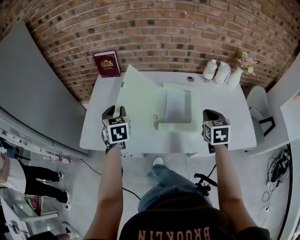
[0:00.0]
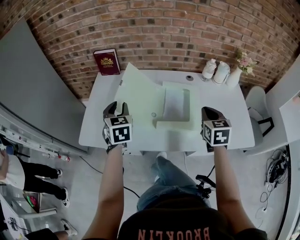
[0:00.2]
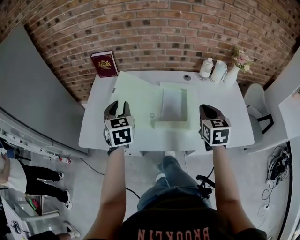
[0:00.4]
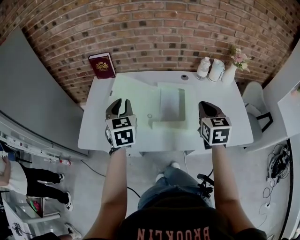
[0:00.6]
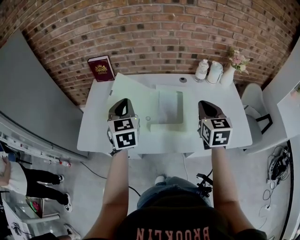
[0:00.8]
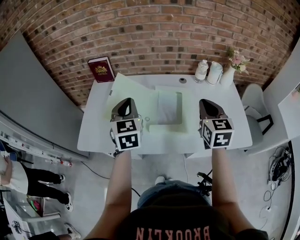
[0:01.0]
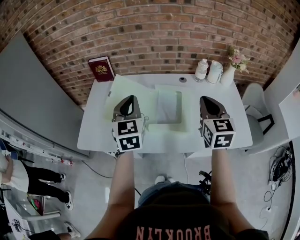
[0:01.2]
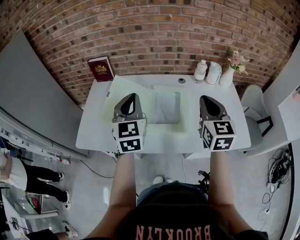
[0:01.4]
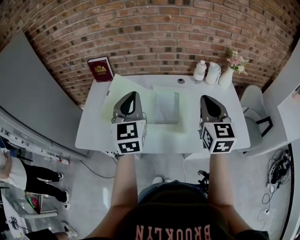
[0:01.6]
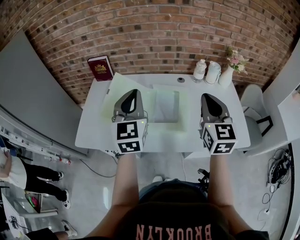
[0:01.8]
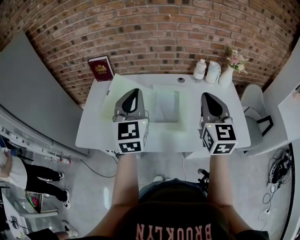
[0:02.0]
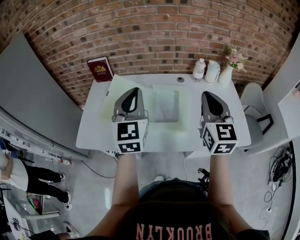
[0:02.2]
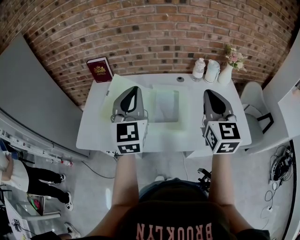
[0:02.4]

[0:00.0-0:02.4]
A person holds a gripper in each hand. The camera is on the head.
0:00.0 to 0:01.2: The left gripper shifts approximately 20 cm to the right and upward, changes its angle by approximately 20 degrees, and closes up. Meanwhile the right gripper travels upward by roughly 10 cm, and swivels about 20 degrees.
0:01.2 to 0:02.4: The grippers both shift upward by roughly 5 cm.

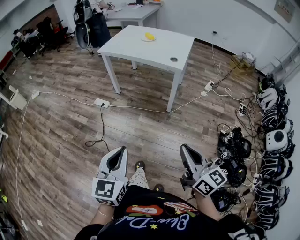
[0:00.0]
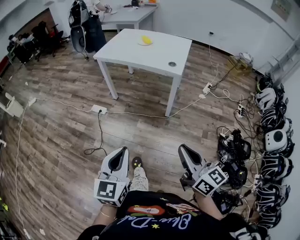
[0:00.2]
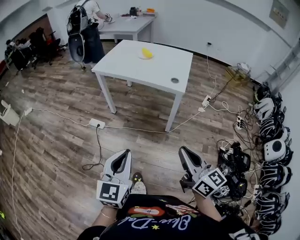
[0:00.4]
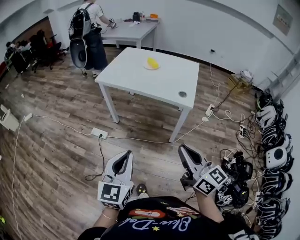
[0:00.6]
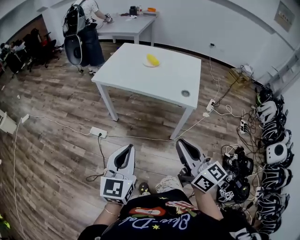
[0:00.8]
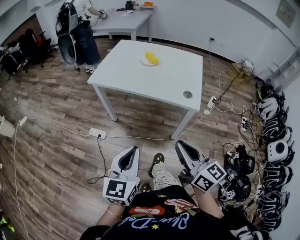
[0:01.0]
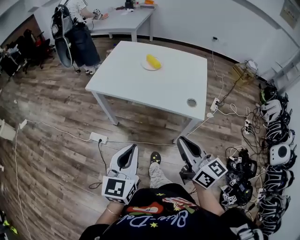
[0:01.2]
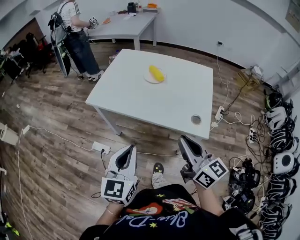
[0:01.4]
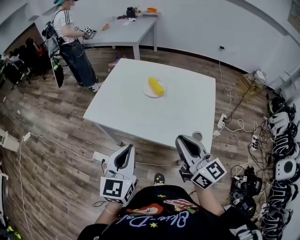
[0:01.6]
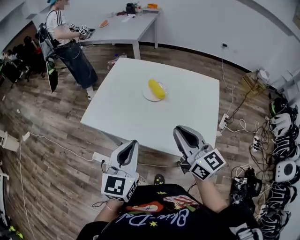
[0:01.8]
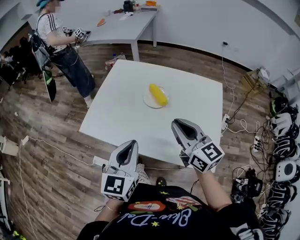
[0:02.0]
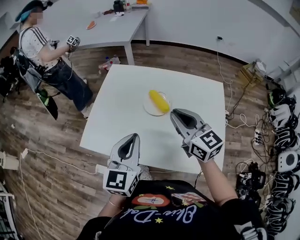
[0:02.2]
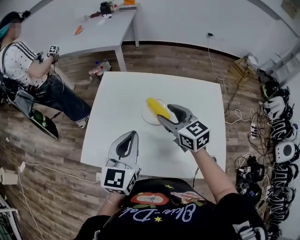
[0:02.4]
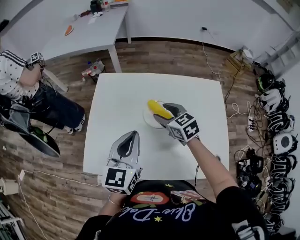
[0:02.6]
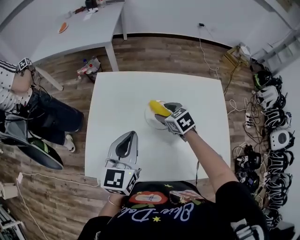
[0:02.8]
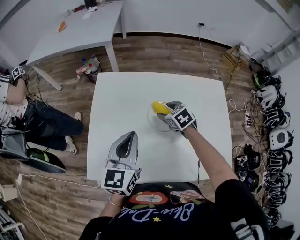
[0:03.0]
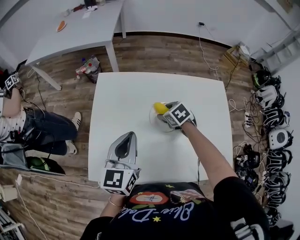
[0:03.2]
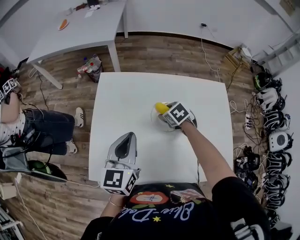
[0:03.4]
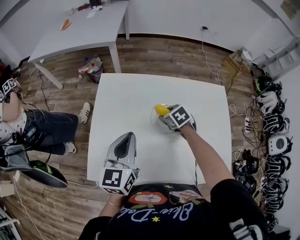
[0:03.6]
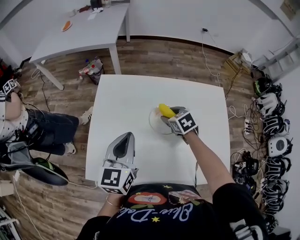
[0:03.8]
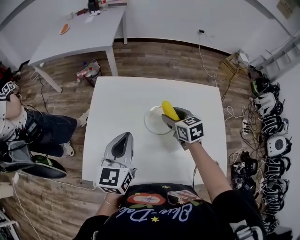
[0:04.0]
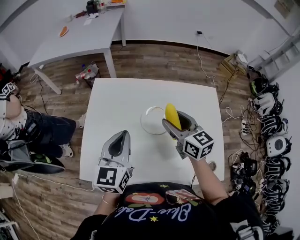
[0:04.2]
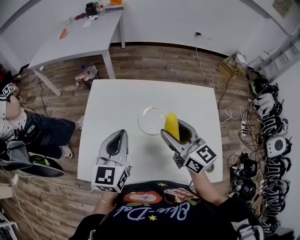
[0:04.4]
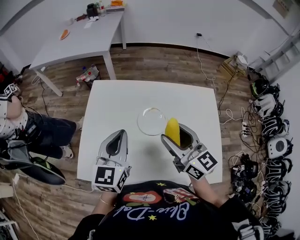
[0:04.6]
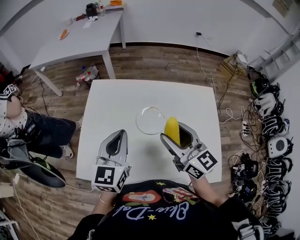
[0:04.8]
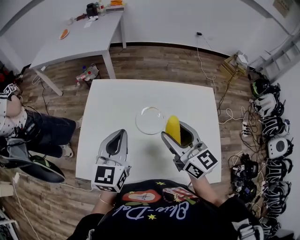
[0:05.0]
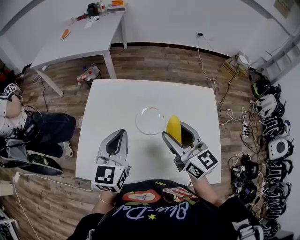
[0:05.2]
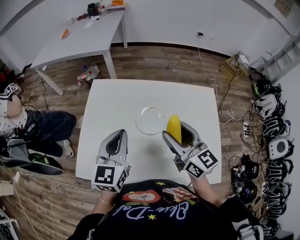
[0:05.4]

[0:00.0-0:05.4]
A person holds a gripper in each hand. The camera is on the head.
0:00.0 to 0:01.4: The pair of grippers is taken forward, some 60 cm.
0:01.4 to 0:02.8: Both grippers are carried forward, some 50 cm. The right gripper points its fingers some 50 degrees further downward, and opens its fingers.
0:02.8 to 0:04.0: The right gripper moves roughly 5 cm.
0:04.0 to 0:05.4: The right gripper is displaced upward and backward by approximately 20 cm, and tilts its fingers approximately 30 degrees upward.

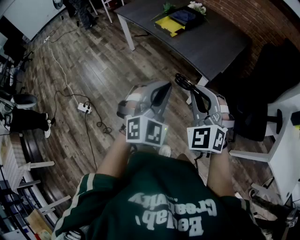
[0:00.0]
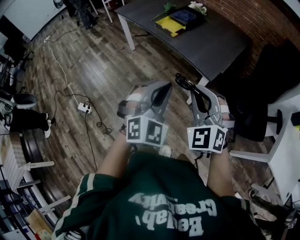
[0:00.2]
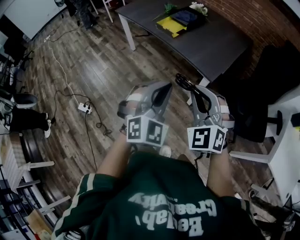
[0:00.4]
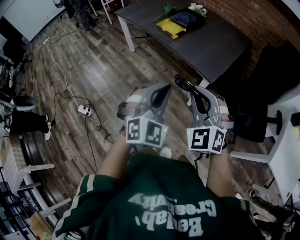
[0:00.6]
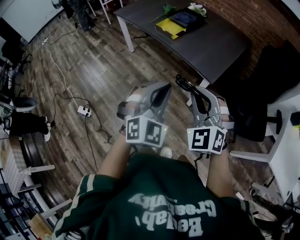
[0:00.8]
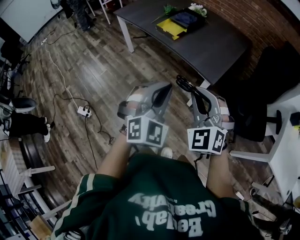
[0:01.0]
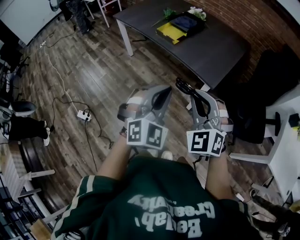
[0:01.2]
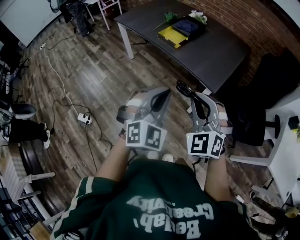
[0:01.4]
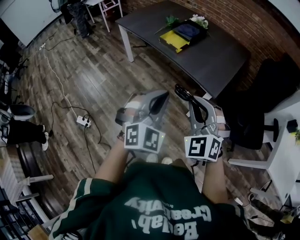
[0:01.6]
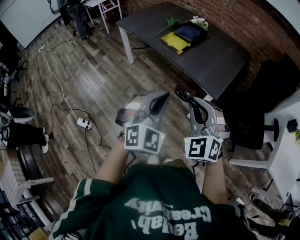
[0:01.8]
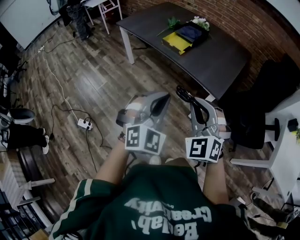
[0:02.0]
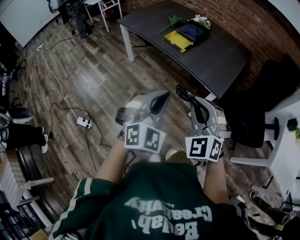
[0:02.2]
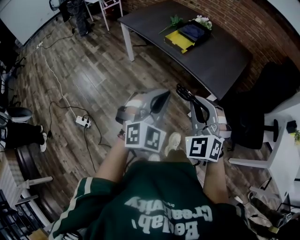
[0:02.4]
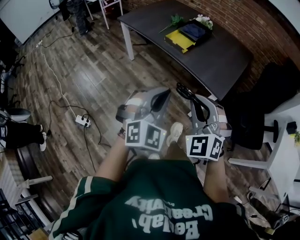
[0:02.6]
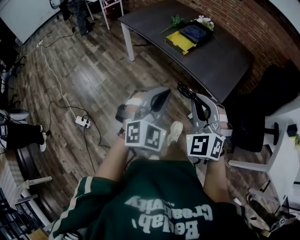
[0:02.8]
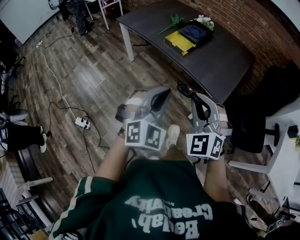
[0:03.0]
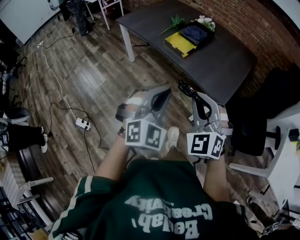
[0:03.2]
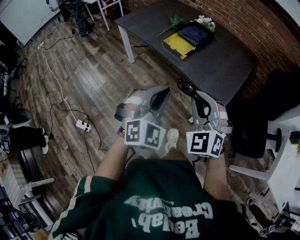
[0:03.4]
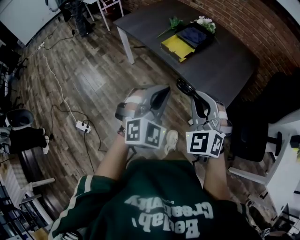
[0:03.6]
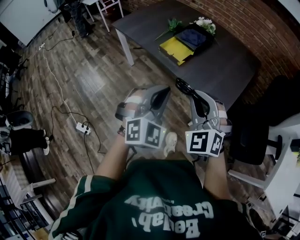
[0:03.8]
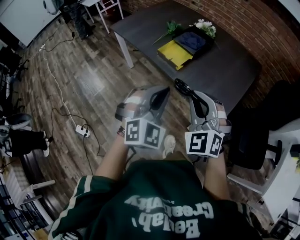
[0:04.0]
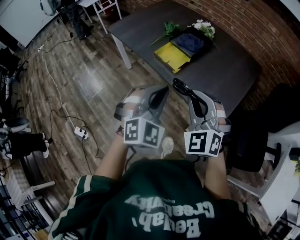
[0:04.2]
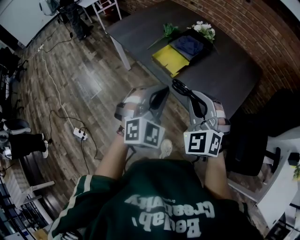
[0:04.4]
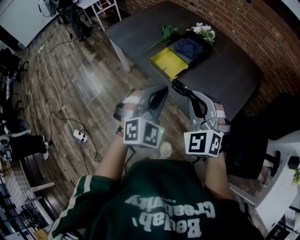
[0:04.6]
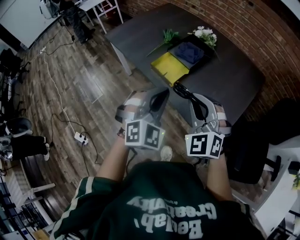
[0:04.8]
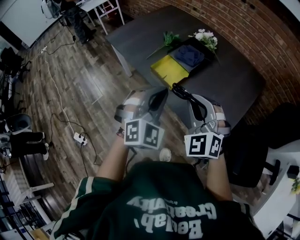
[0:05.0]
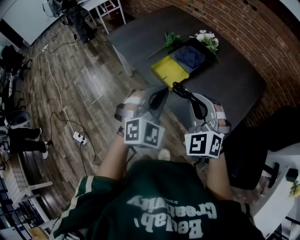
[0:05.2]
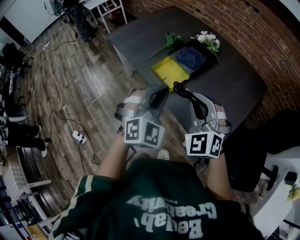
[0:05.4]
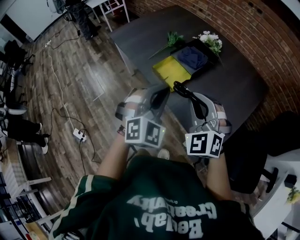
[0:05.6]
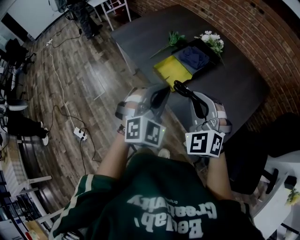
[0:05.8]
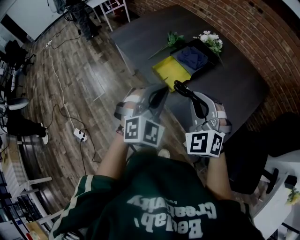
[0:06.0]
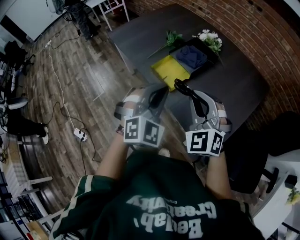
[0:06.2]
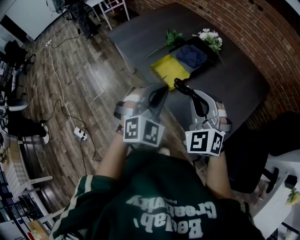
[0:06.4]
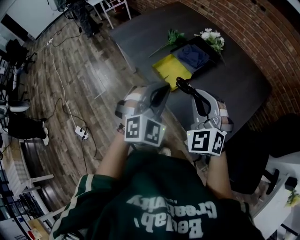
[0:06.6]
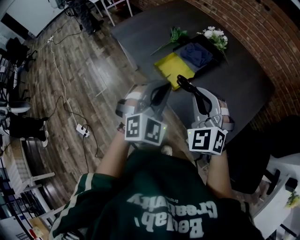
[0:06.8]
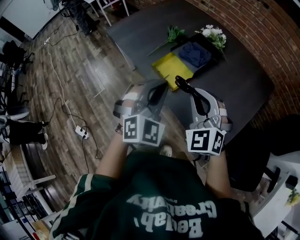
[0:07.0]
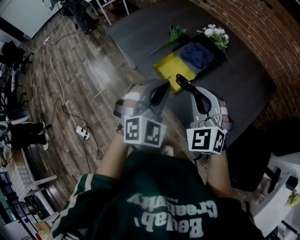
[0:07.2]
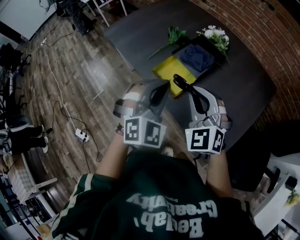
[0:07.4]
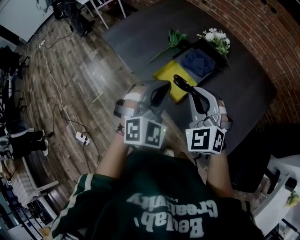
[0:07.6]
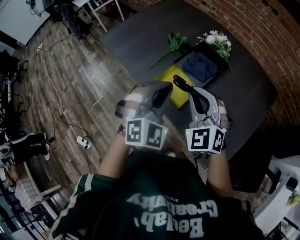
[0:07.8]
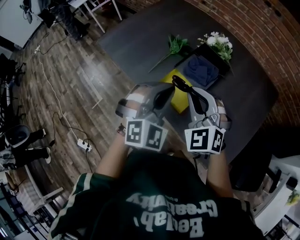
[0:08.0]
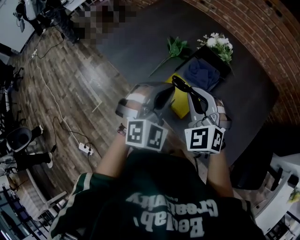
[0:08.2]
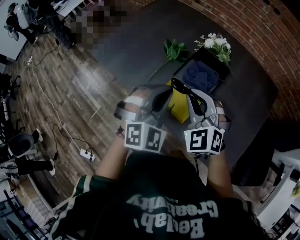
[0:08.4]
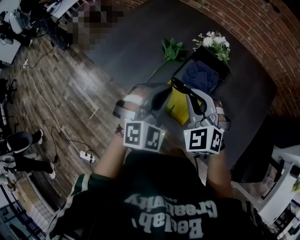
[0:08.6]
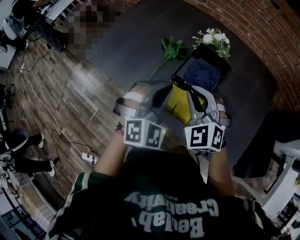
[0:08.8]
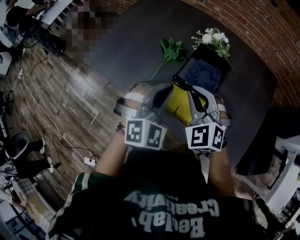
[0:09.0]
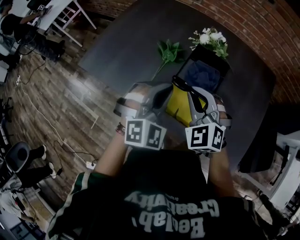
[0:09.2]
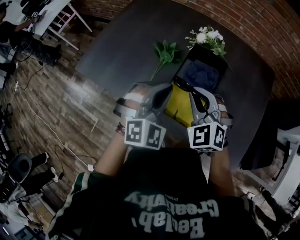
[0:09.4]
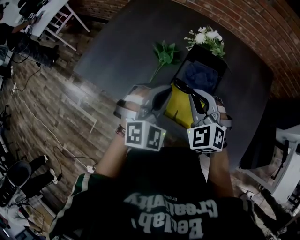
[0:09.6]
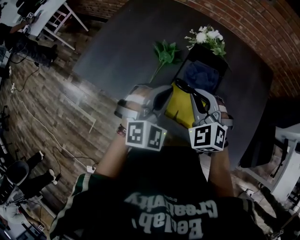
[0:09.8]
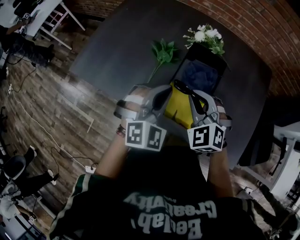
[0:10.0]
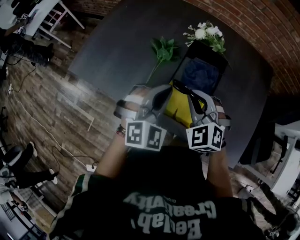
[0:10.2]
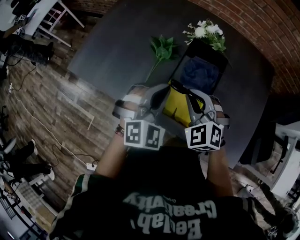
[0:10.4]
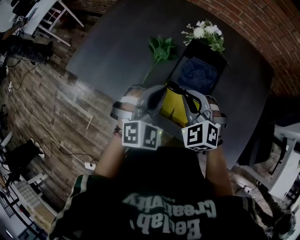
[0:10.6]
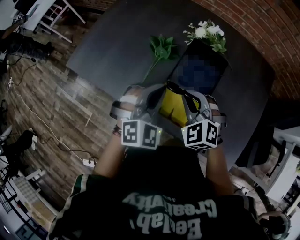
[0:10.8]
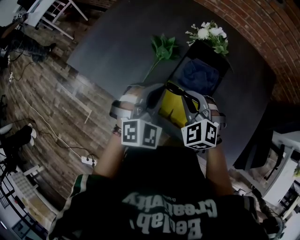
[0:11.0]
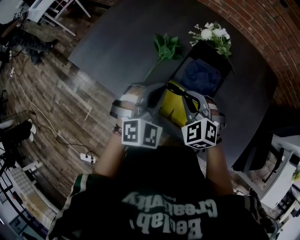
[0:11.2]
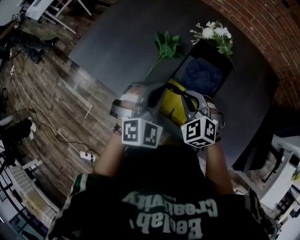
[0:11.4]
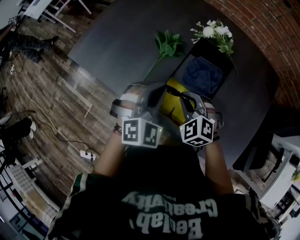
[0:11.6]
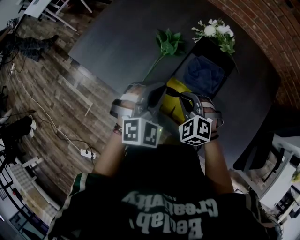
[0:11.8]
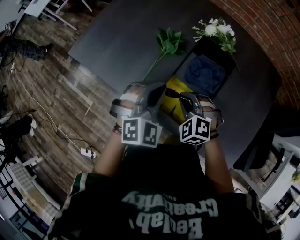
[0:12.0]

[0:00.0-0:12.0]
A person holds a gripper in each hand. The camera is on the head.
0:00.0 to 0:01.6: The left gripper shifts about 10 cm to the left and forward. The right gripper goes approximately 10 cm to the left.
0:01.6 to 0:03.0: Both grippers travel together forward and to the left, approximately 10 cm.
0:03.0 to 0:04.4: Both grippers travel together forward, roughly 25 cm.
0:04.4 to 0:06.0: The grippers both shift forward by some 10 cm.
0:06.0 to 0:07.6: The grippers both shift forward by roughly 15 cm.
0:07.6 to 0:09.0: Both grippers move forward and to the left, about 20 cm.
0:09.0 to 0:10.4: The right gripper is displaced downward by about 5 cm; the left gripper changes place by roughly 5 cm.
0:10.4 to 0:12.0: The right gripper shifts some 10 cm downward, and rotates some 20 degrees.

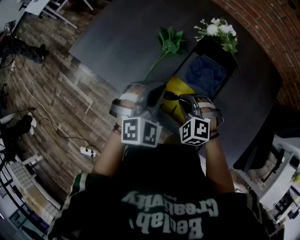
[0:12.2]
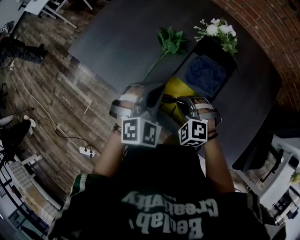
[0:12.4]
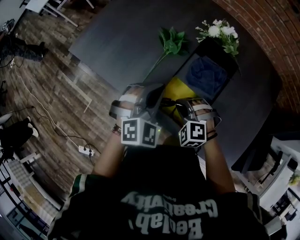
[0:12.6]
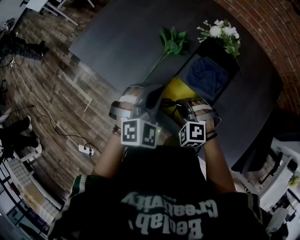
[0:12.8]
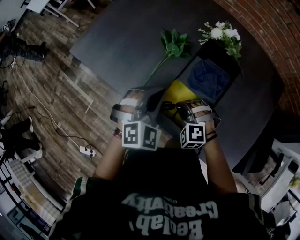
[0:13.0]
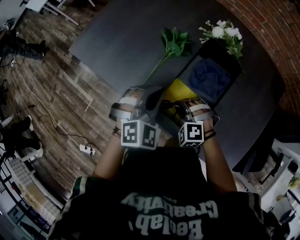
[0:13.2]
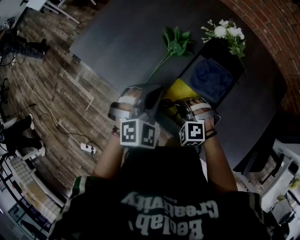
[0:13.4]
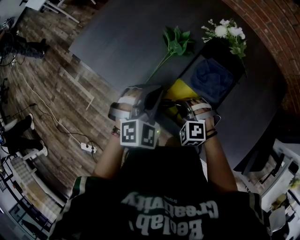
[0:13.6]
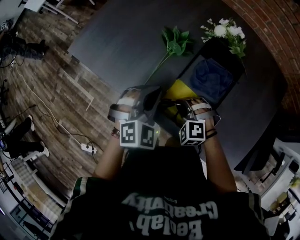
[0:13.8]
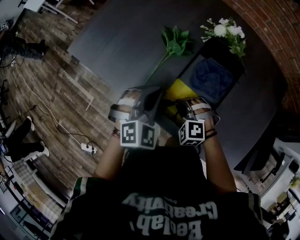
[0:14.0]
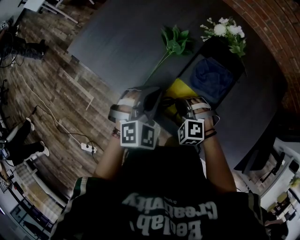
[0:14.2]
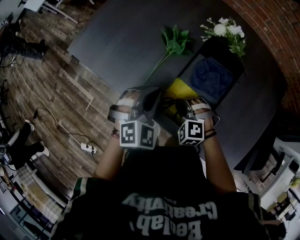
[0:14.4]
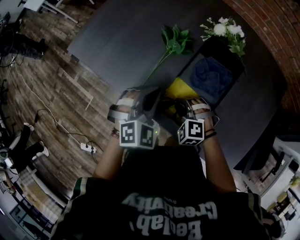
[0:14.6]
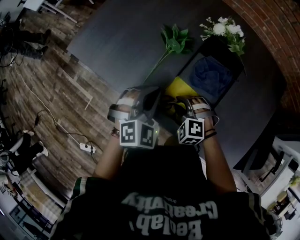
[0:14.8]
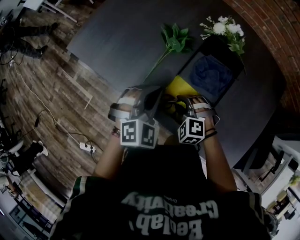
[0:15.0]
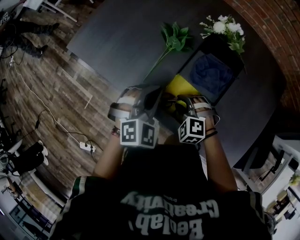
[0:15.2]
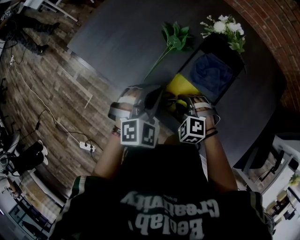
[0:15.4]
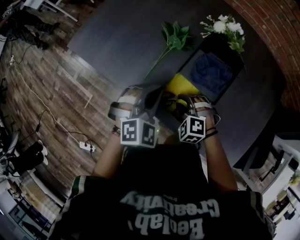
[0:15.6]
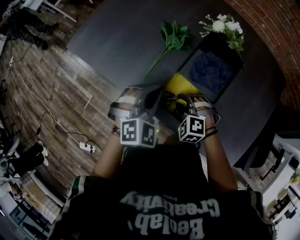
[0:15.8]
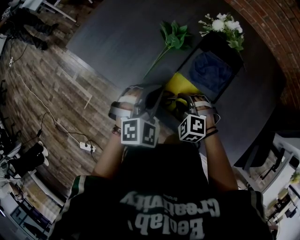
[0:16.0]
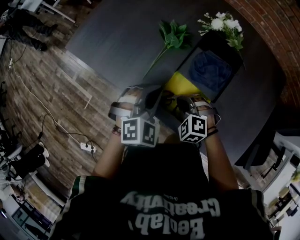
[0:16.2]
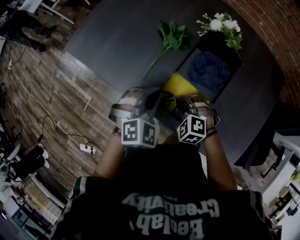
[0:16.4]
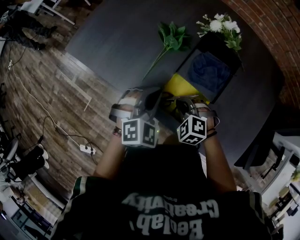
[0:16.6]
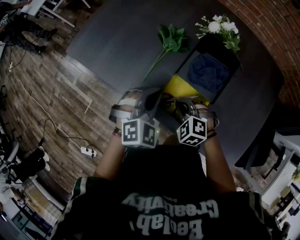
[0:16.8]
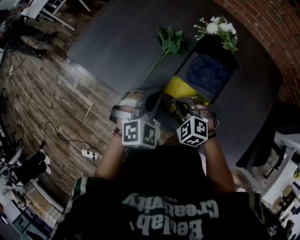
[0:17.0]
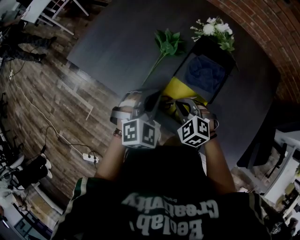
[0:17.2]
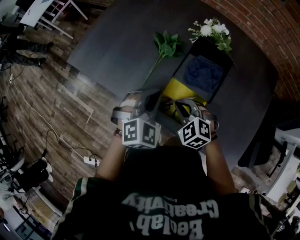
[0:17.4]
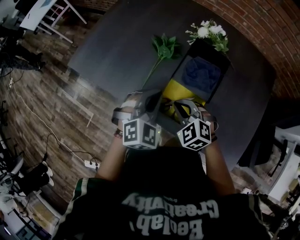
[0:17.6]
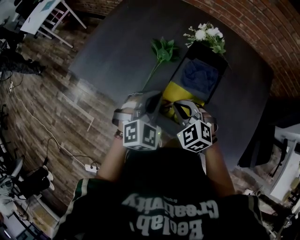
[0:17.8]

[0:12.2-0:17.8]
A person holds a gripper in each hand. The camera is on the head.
0:12.2 to 0:13.6: The right gripper heads downward, covering about 5 cm.
0:13.6 to 0:15.0: The right gripper opens its fingers.
0:15.0 to 0:16.4: The right gripper closes its fingers.
0:16.4 to 0:17.8: The left gripper heads upward, covering some 5 cm, while the right gripper shifts roughly 10 cm upward, and rotates approximately 20 degrees.
